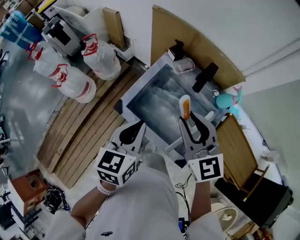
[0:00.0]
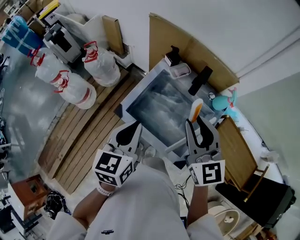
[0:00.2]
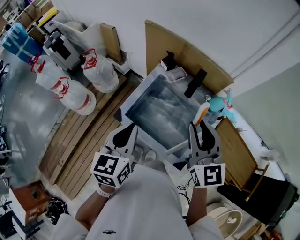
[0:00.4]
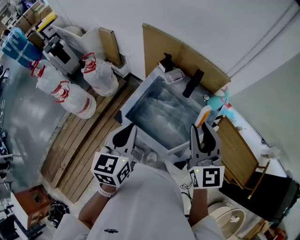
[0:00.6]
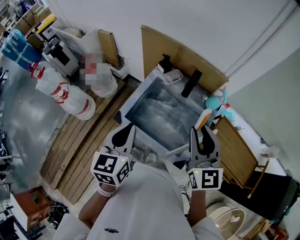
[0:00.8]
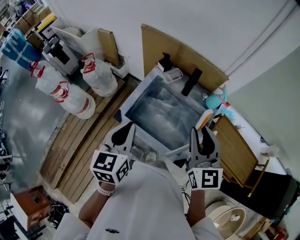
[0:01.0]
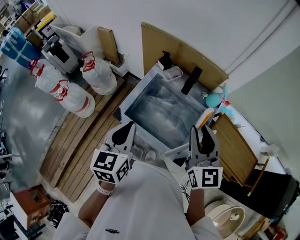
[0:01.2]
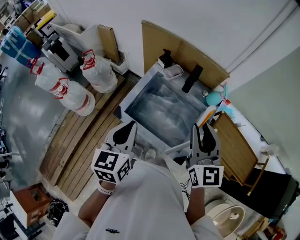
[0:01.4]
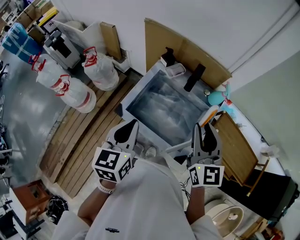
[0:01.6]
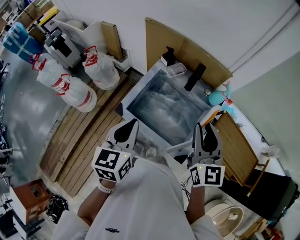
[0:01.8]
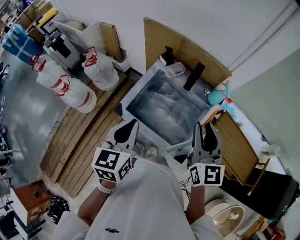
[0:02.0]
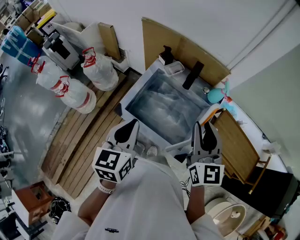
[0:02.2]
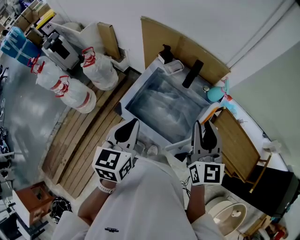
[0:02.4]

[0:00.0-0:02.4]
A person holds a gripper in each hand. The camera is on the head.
0.0 to 1.2 s: The right gripper moves to the right and backward, approximately 10 cm, and rotates roughly 20 degrees. Meanwhile the left gripper shifts by about 5 cm.
1.2 to 2.4 s: There are only small adjustments of the grippers.

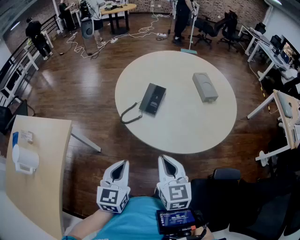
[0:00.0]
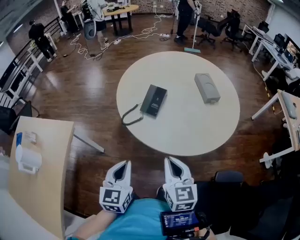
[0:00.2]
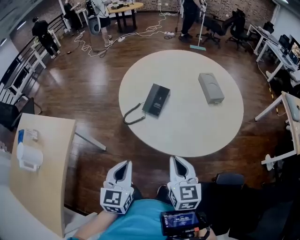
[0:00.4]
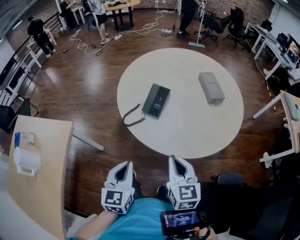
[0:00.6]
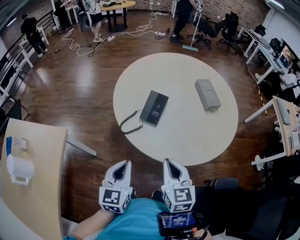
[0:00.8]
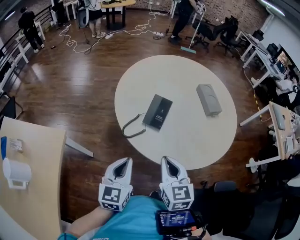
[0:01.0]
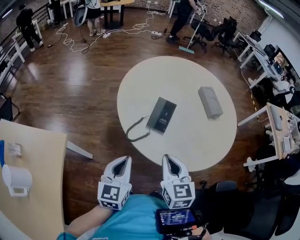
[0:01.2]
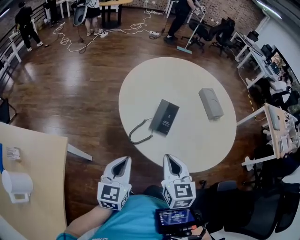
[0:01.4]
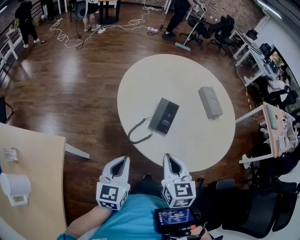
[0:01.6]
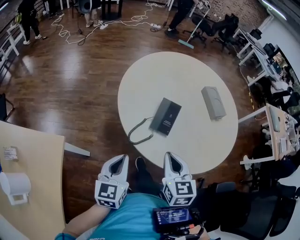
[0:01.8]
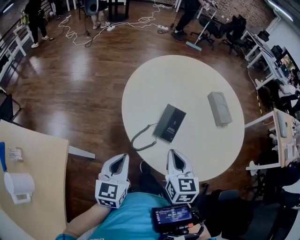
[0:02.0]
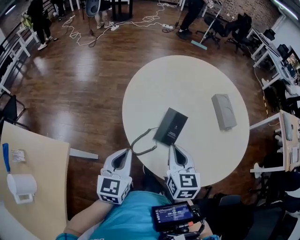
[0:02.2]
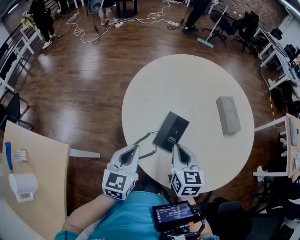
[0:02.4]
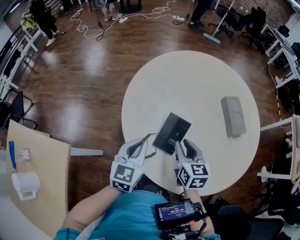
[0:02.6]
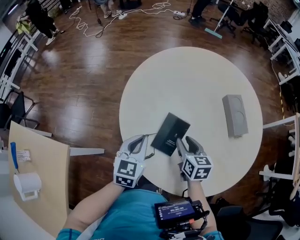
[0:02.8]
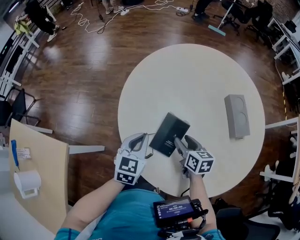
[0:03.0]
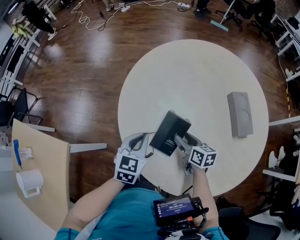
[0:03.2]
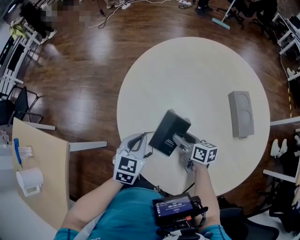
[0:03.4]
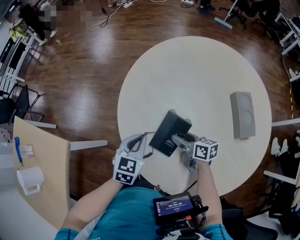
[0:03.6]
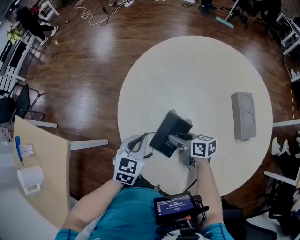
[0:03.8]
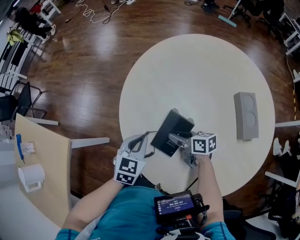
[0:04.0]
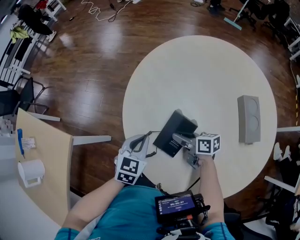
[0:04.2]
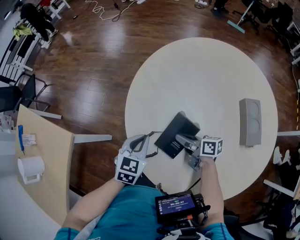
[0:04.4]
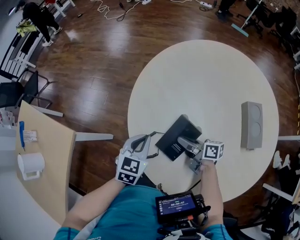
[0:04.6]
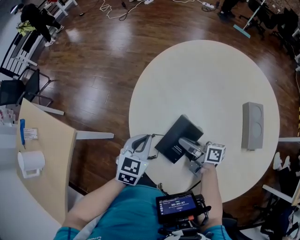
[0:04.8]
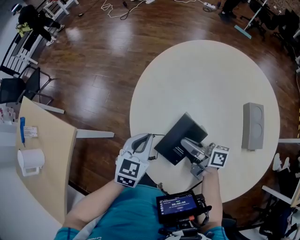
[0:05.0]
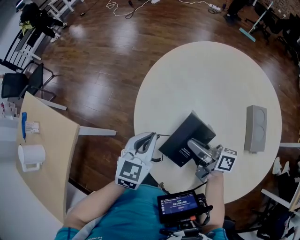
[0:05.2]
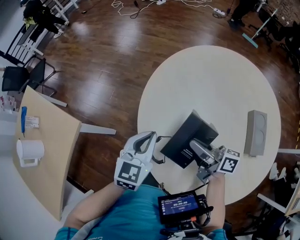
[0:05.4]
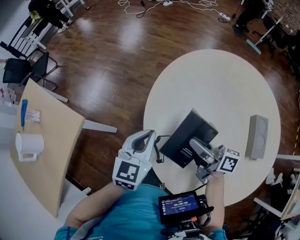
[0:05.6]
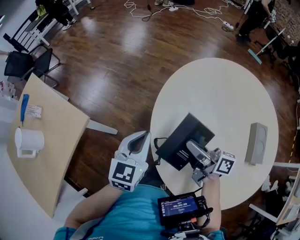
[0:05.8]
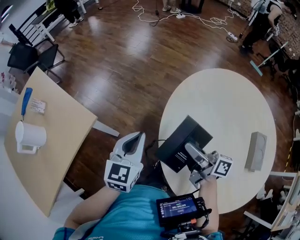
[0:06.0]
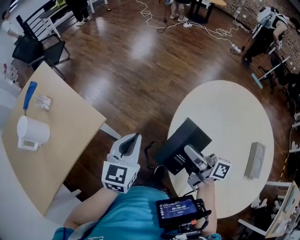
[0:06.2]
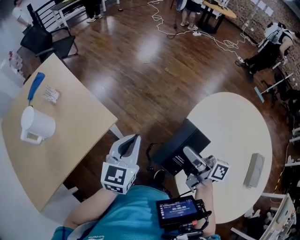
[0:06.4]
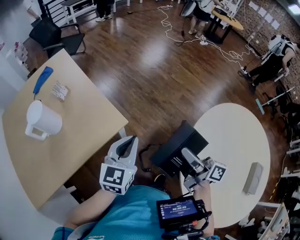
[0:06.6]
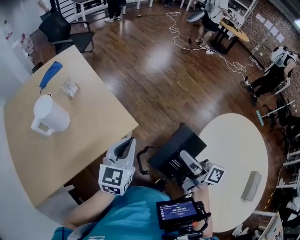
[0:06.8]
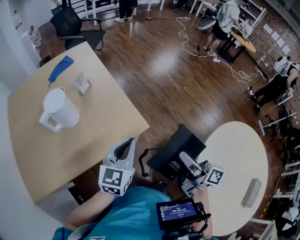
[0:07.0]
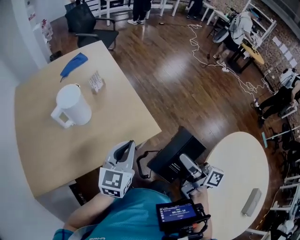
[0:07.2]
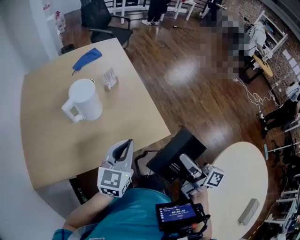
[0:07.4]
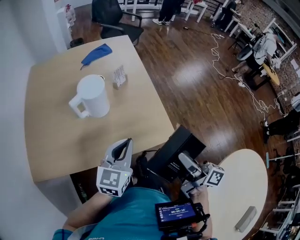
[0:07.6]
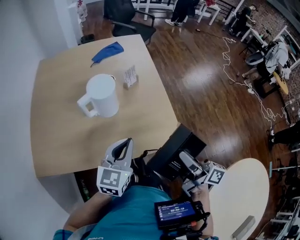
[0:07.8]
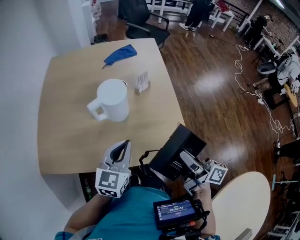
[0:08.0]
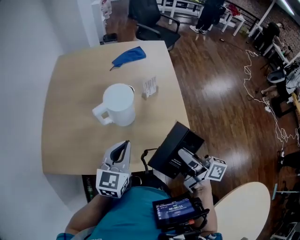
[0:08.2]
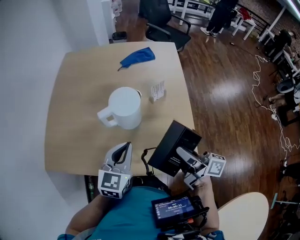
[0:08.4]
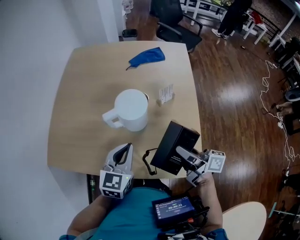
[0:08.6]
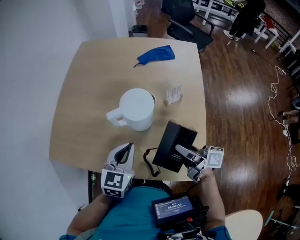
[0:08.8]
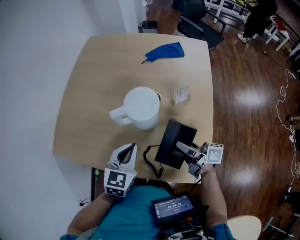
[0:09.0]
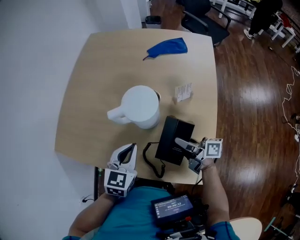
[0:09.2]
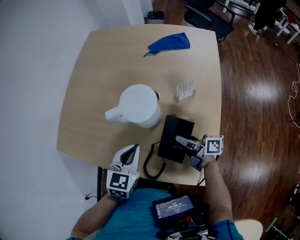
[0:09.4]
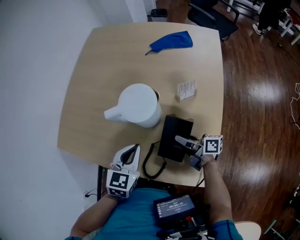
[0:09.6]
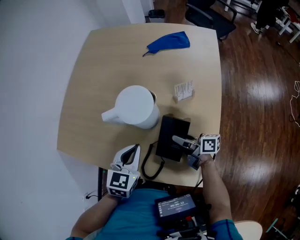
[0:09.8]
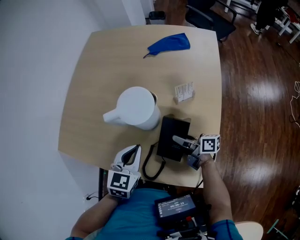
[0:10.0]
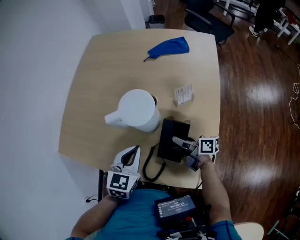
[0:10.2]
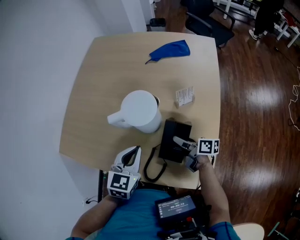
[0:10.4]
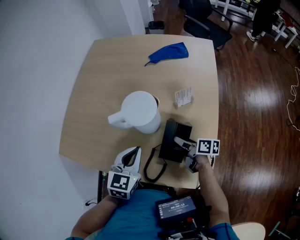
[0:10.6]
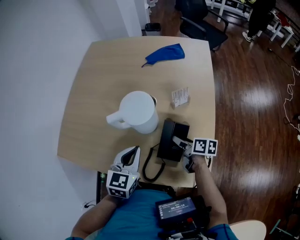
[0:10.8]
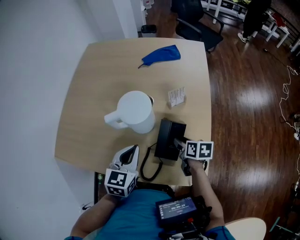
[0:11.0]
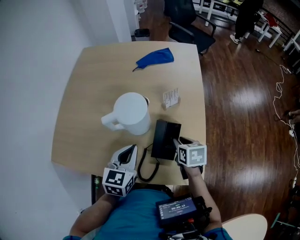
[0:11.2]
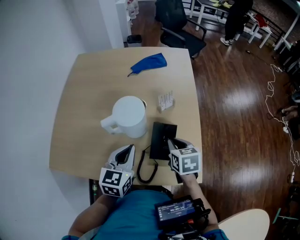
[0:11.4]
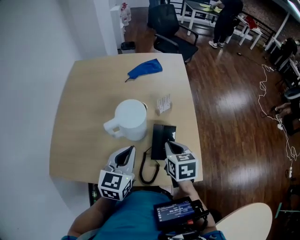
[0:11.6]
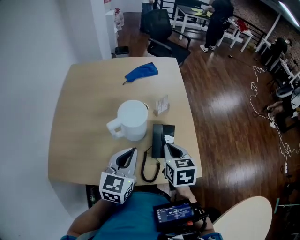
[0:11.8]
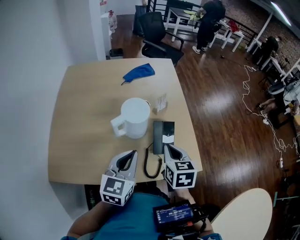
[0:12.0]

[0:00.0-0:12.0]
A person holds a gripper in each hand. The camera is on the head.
0.0 to 1.6 s: The two grippers go roughly 20 cm forward and to the left.
1.6 to 3.0 s: The left gripper shifts roughly 25 cm forward and to the right. The right gripper shifts approximately 30 cm forward, downward and to the right, rotates approximately 30 degrees, and opens.
3.0 to 4.4 s: The right gripper ends up about 5 cm from where it was, and turns by some 40 degrees.
4.4 to 6.0 s: The left gripper travels to the left and upward by some 20 cm, and turns by approximately 30 degrees; the right gripper shifts about 25 cm upward and to the left.
6.0 to 7.6 s: The two grippers travel together, about 50 cm. The right gripper changes its angle by roughly 40 degrees, while the left gripper rotates approximately 40 degrees.
7.6 to 9.0 s: The right gripper moves approximately 30 cm, and turns by approximately 50 degrees. The left gripper changes place by some 20 cm, and turns by approximately 30 degrees.
9.0 to 10.4 s: The right gripper goes some 10 cm downward.
10.4 to 12.0 s: The right gripper goes some 20 cm upward, swivels some 70 degrees, and closes. Meanwhile the left gripper goes approximately 10 cm upward, and swivels about 20 degrees.

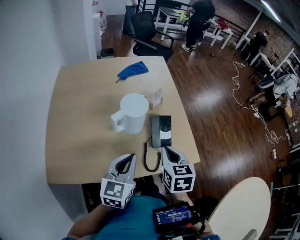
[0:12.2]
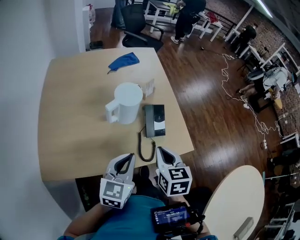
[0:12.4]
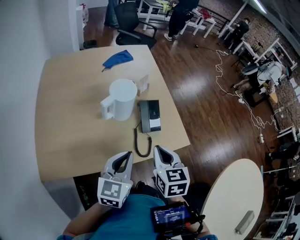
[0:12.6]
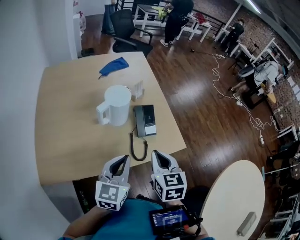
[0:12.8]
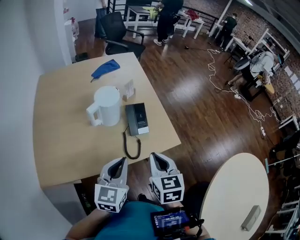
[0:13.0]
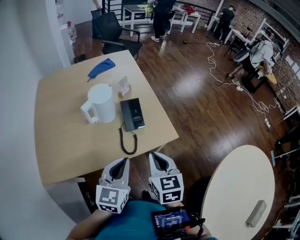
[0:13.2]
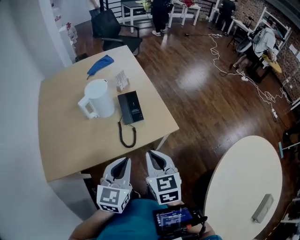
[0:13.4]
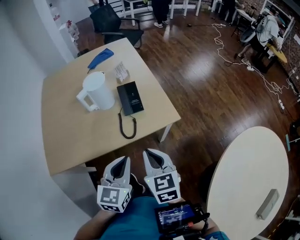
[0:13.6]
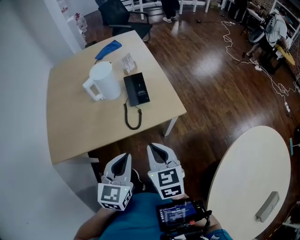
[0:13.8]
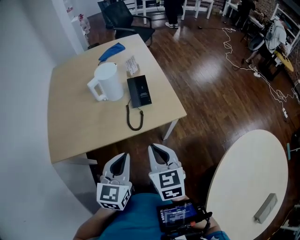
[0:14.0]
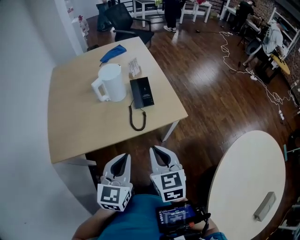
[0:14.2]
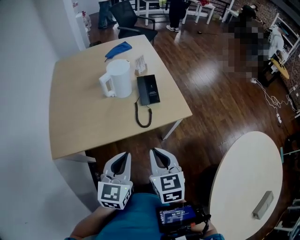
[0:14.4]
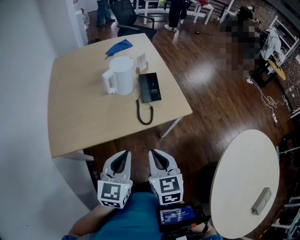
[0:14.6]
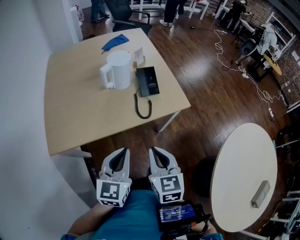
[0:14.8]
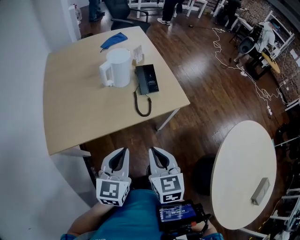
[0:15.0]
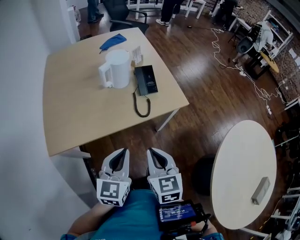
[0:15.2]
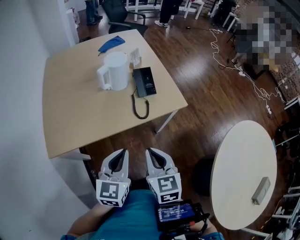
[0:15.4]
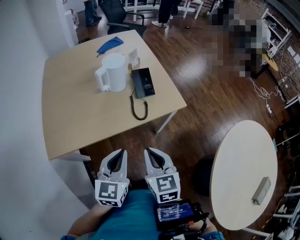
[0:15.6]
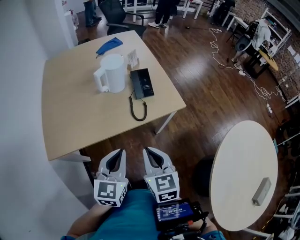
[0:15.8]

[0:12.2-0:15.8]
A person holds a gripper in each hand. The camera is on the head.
12.2 to 14.0 s: The left gripper shifts some 20 cm backward and to the right. Meanwhile the right gripper shifts some 20 cm backward.
14.0 to 15.8 s: The right gripper travels to the left and backward by about 10 cm. Meanwhile the left gripper heads to the left, covering roughly 10 cm.

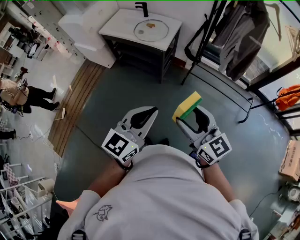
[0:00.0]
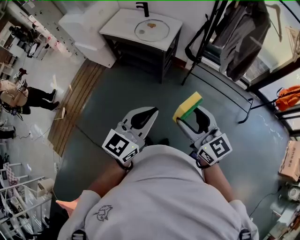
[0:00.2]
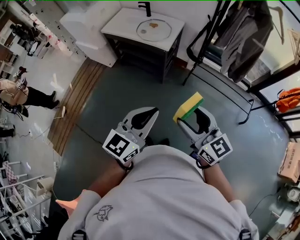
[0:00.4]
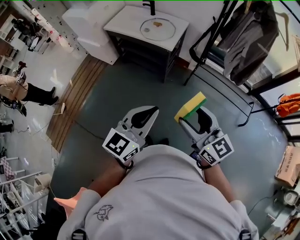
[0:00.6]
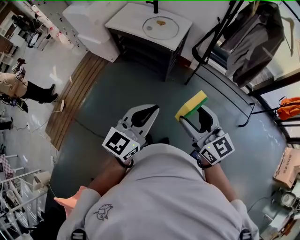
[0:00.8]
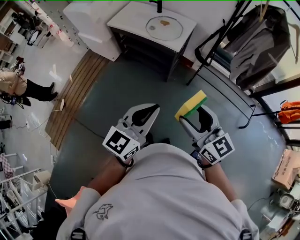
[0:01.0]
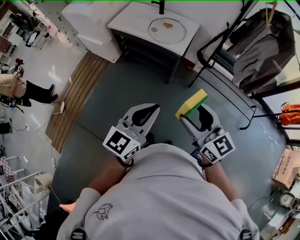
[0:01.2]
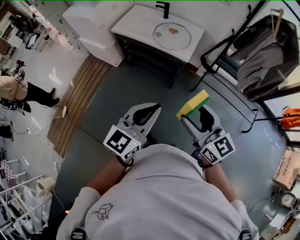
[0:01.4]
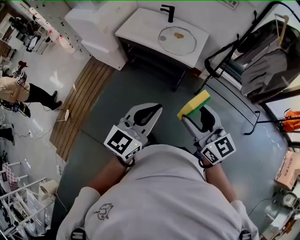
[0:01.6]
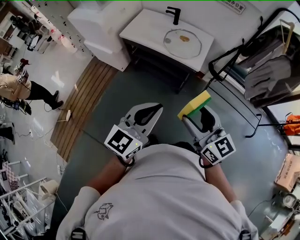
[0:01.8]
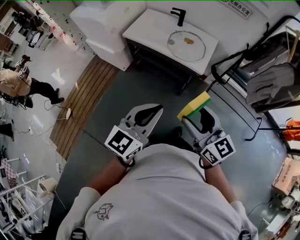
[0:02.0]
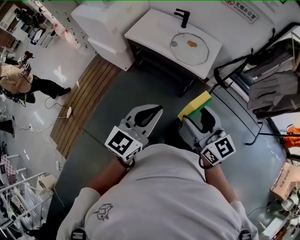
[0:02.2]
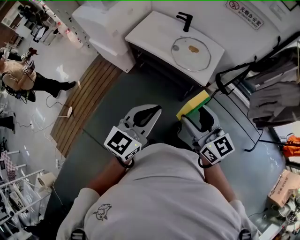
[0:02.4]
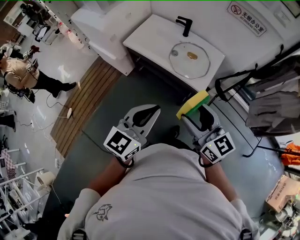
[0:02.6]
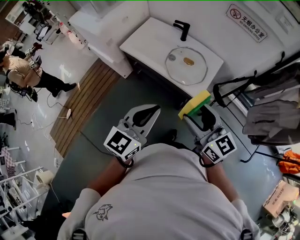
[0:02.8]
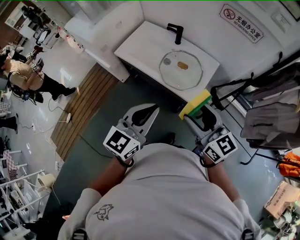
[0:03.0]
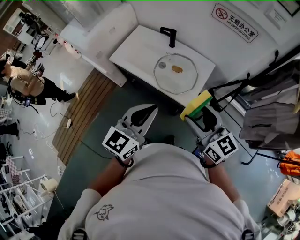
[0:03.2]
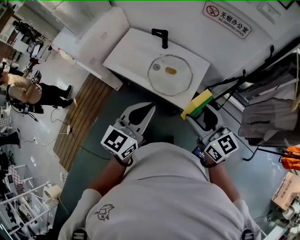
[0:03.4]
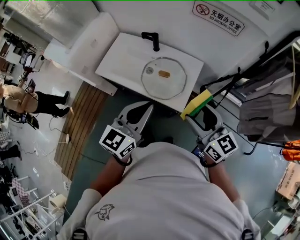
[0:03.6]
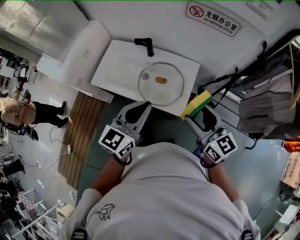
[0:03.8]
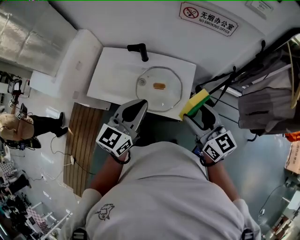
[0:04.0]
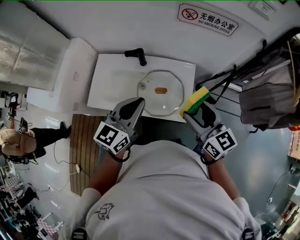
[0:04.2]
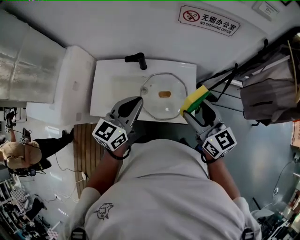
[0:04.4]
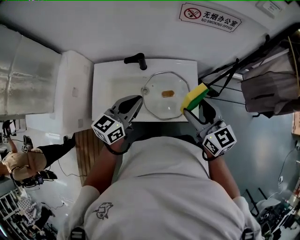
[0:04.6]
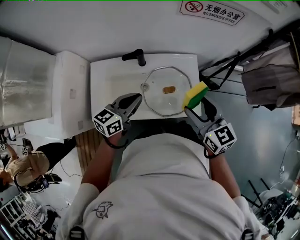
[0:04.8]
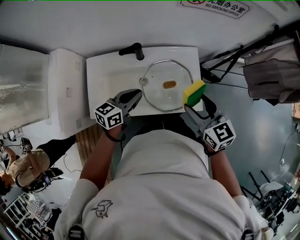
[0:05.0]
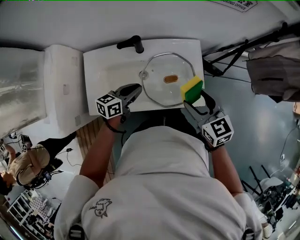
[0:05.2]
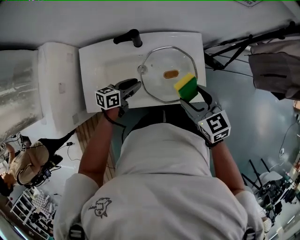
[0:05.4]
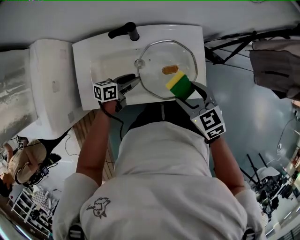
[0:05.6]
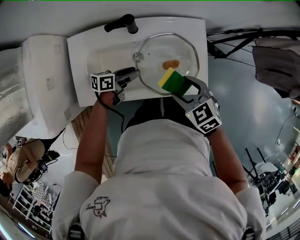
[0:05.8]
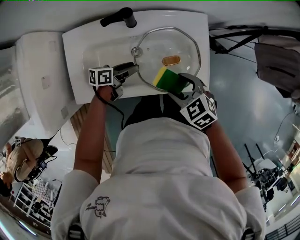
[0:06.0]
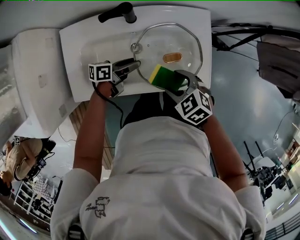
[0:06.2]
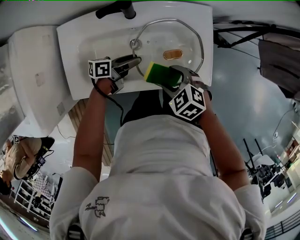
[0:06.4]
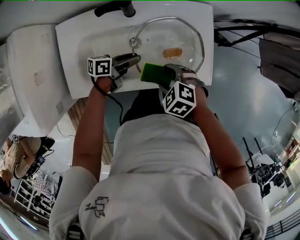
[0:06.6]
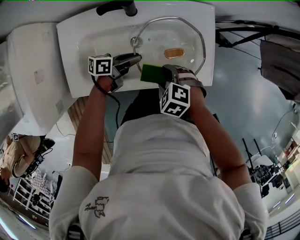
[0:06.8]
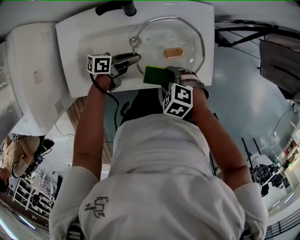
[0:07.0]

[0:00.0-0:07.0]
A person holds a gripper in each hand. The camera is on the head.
0.0 to 1.4 s: The left gripper travels to the left and forward by roughly 25 cm. Meanwhile the right gripper goes roughly 25 cm forward and to the left.
1.4 to 2.8 s: Both grippers travel together forward, approximately 30 cm.
2.8 to 4.2 s: The two grippers go some 30 cm forward. The right gripper rotates some 30 degrees, while the left gripper swivels about 20 degrees.
4.2 to 5.6 s: The left gripper shifts roughly 35 cm downward, changes its angle by roughly 50 degrees, and opens. Meanwhile the right gripper goes about 25 cm downward and to the left, and angles its fingers downward, by roughly 30 degrees.
5.6 to 7.0 s: The left gripper moves downward, about 5 cm, while the right gripper heads downward, covering approximately 15 cm, and points its fingers approximately 30 degrees further downward.
